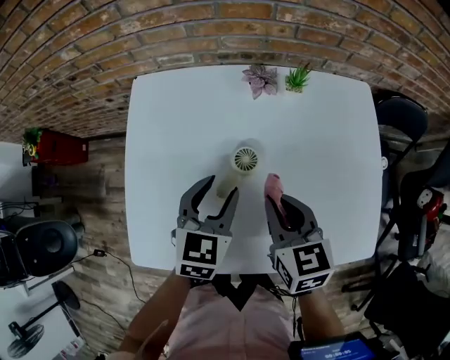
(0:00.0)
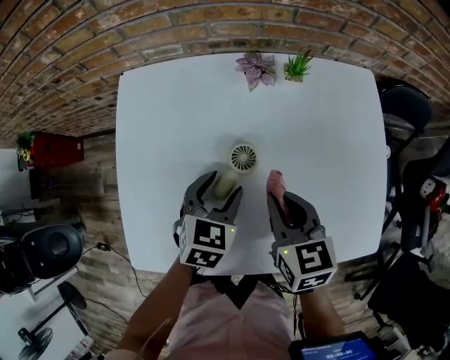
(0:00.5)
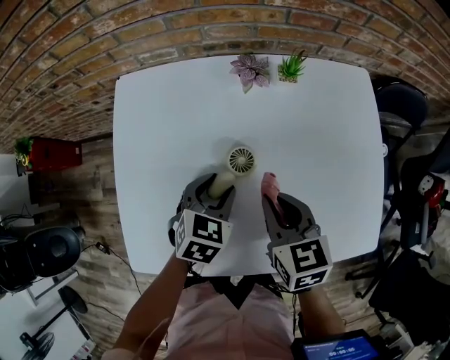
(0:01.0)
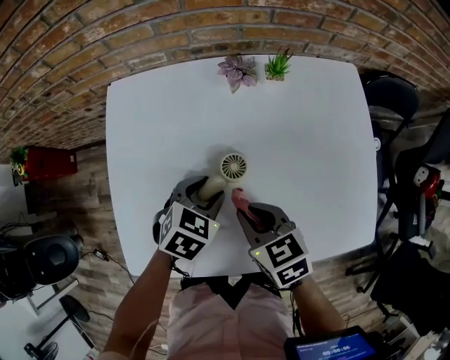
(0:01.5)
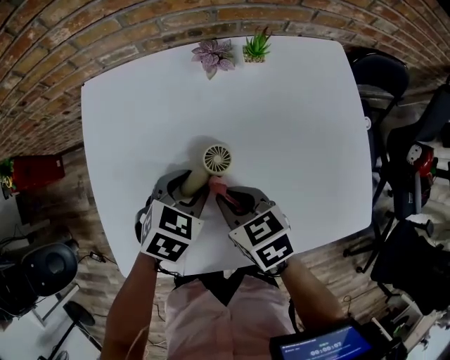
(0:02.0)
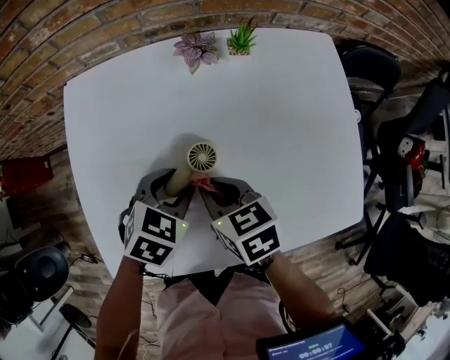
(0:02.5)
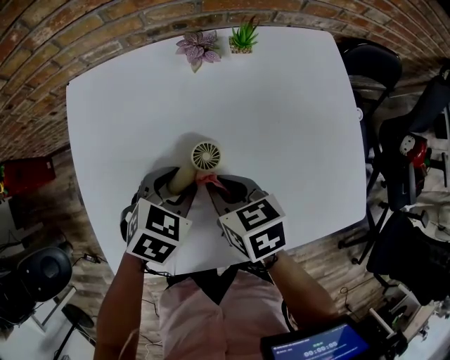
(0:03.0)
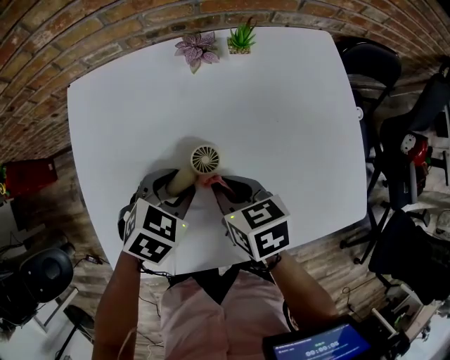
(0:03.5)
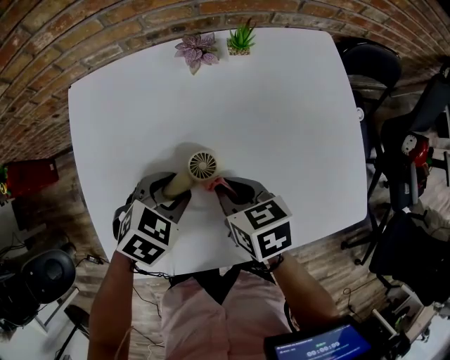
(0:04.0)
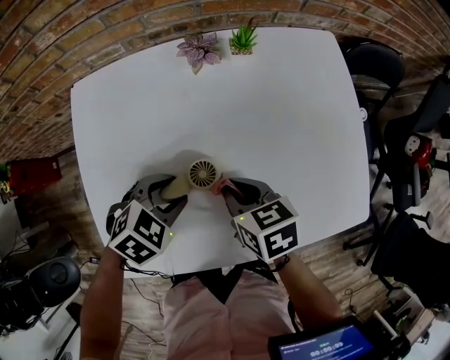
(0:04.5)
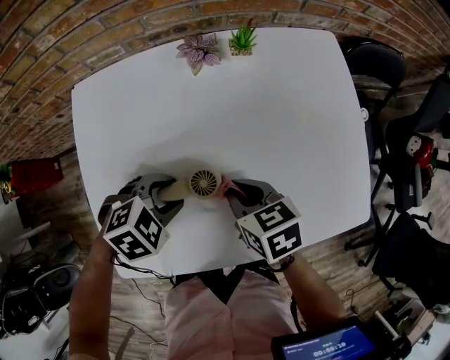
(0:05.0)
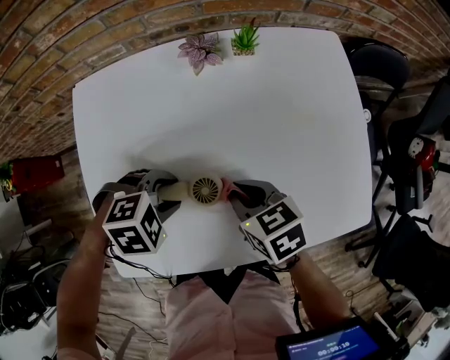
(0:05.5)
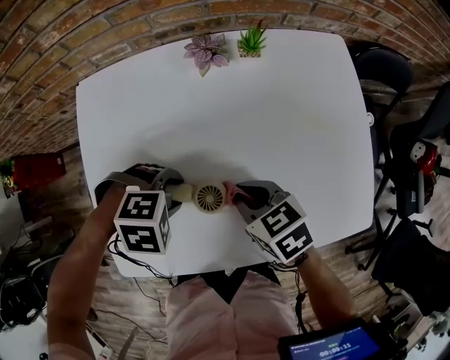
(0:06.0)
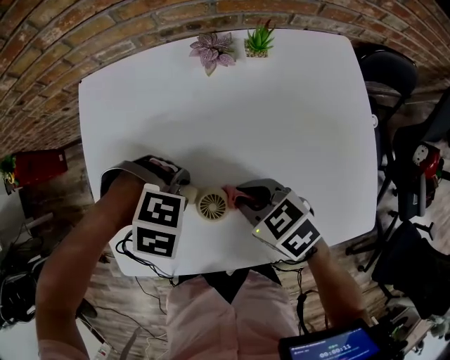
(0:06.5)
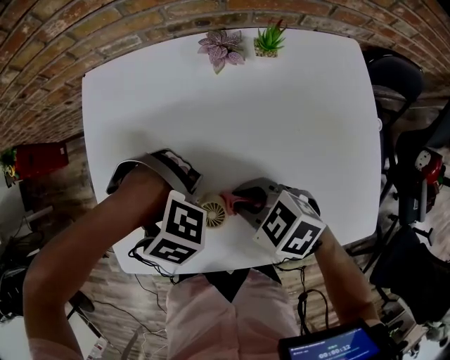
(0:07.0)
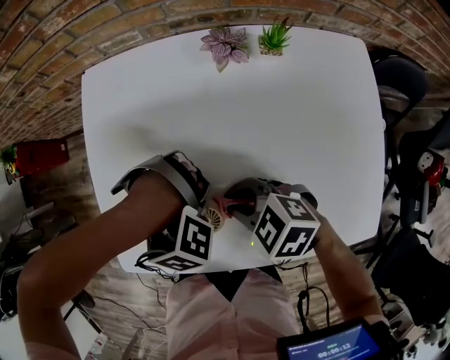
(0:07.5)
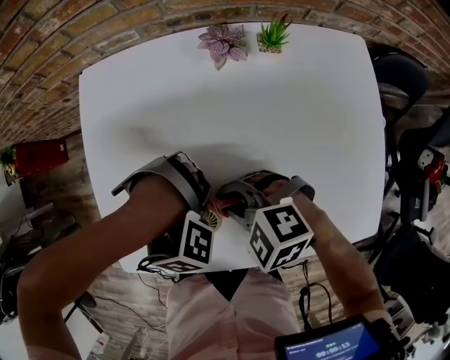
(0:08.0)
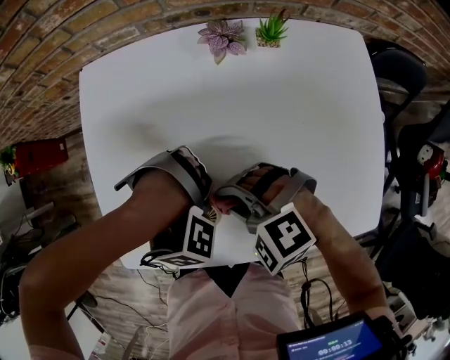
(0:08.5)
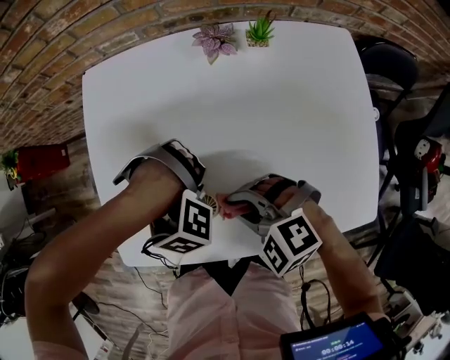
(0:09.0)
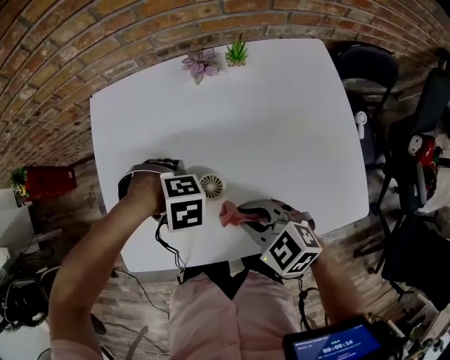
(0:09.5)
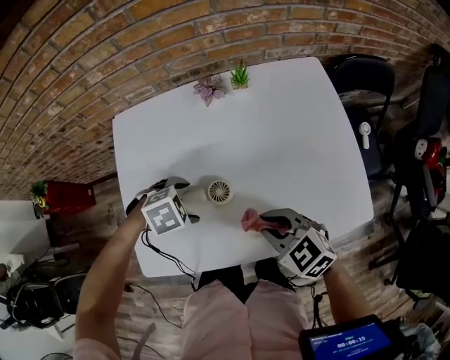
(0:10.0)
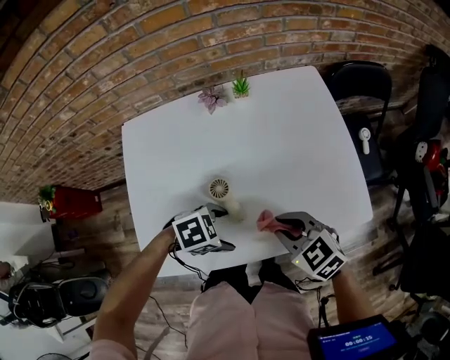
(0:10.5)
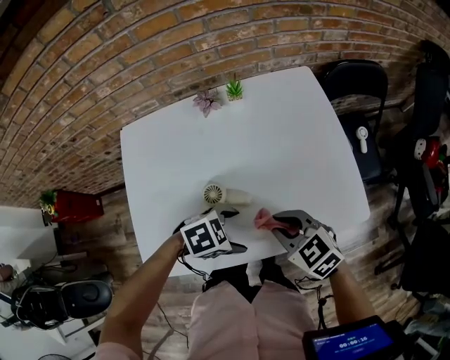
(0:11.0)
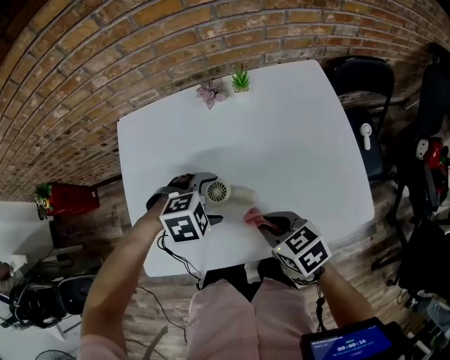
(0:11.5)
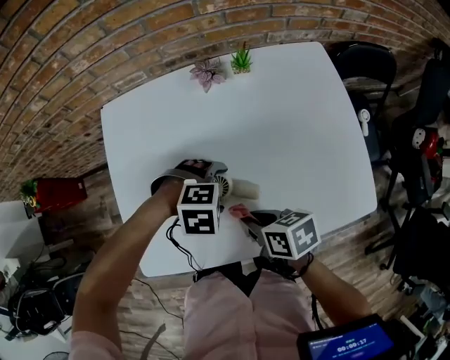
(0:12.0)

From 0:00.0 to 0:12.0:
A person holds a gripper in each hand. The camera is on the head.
From 0:00.0 to 0:02.0: The left gripper heads downward, covering roughly 10 cm, and rotates roughly 30 degrees, while the right gripper travels downward and to the left by roughly 10 cm, and swivels about 20 degrees.
From 0:02.0 to 0:04.0: The grippers make only small movements.
From 0:04.0 to 0:06.0: The left gripper rolls clockwise, seen from behind, by approximately 40 degrees.
From 0:06.0 to 0:08.0: The left gripper rolls clockwise, seen from behind, by approximately 40 degrees. The right gripper moves about 5 cm, and rolls counterclockwise, seen from behind, by roughly 50 degrees.
From 0:08.0 to 0:10.0: The left gripper rolls counterclockwise, seen from behind, by roughly 70 degrees, and opens its fingers, while the right gripper changes place by roughly 15 cm, and rotates about 40 degrees.
From 0:10.0 to 0:12.0: The left gripper swivels some 30 degrees. The right gripper goes approximately 5 cm downward, and twists roughly 50 degrees clockwise, seen from behind.

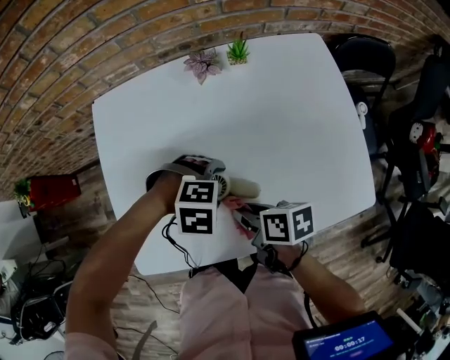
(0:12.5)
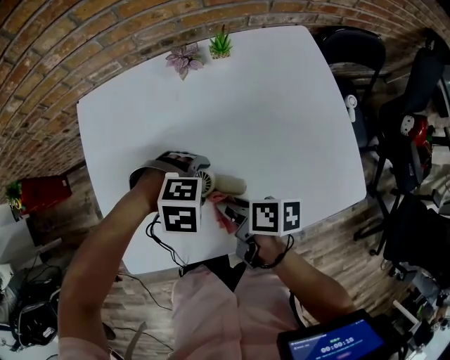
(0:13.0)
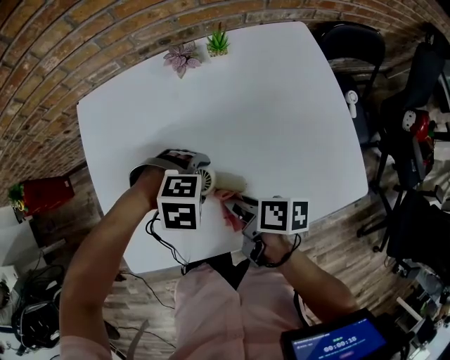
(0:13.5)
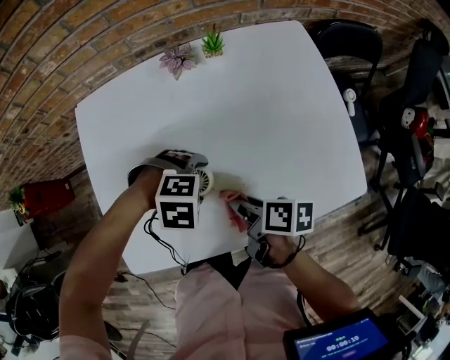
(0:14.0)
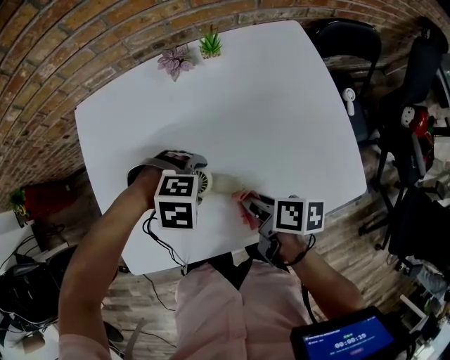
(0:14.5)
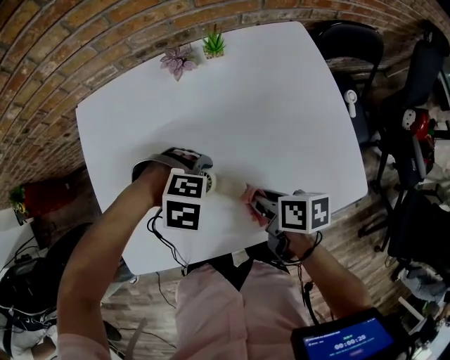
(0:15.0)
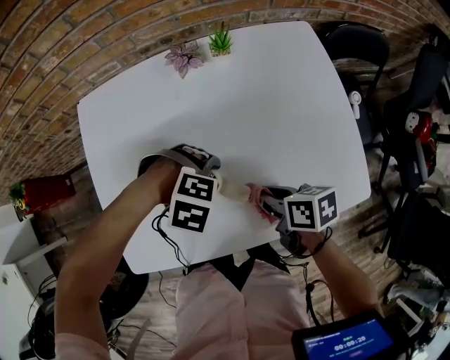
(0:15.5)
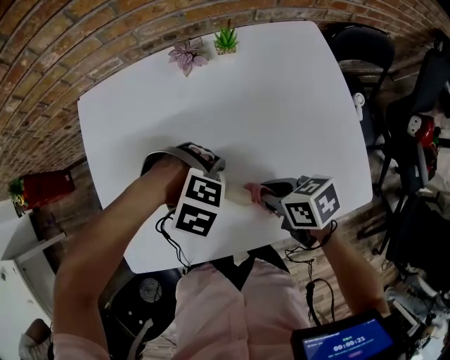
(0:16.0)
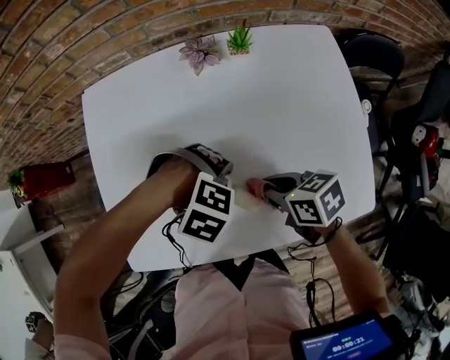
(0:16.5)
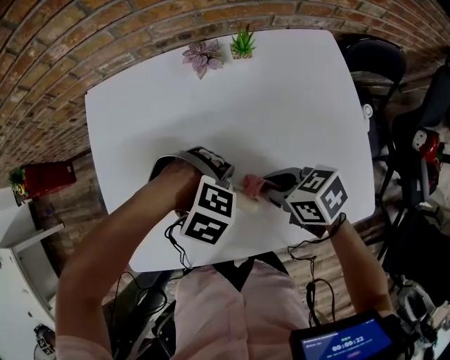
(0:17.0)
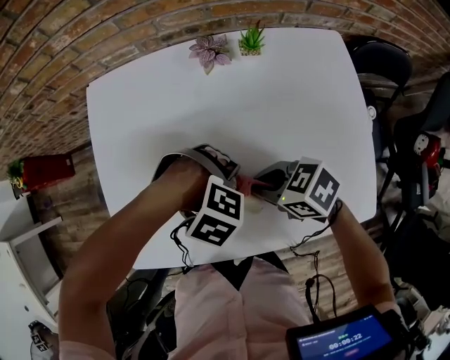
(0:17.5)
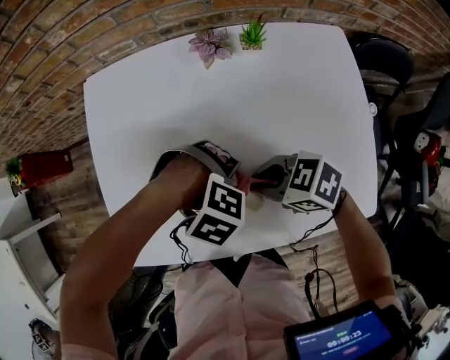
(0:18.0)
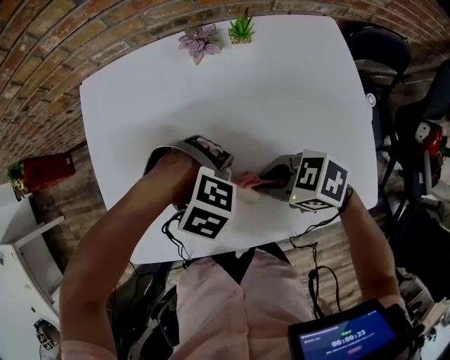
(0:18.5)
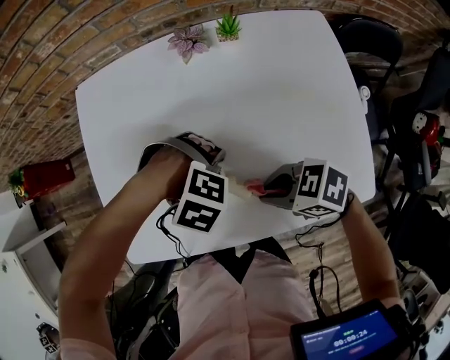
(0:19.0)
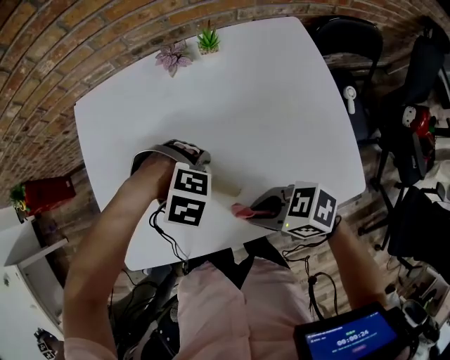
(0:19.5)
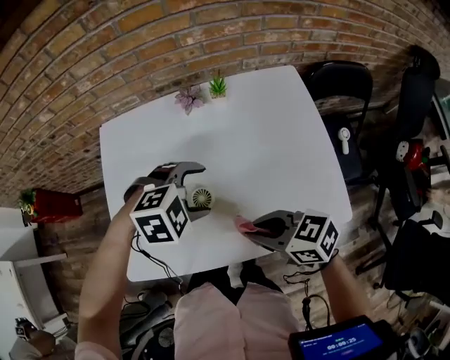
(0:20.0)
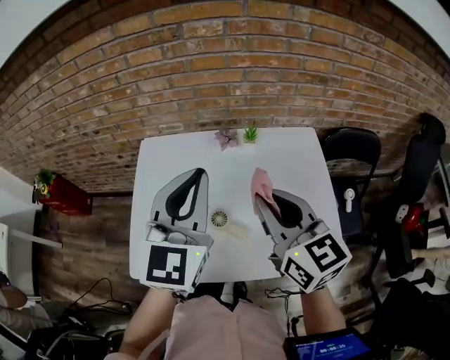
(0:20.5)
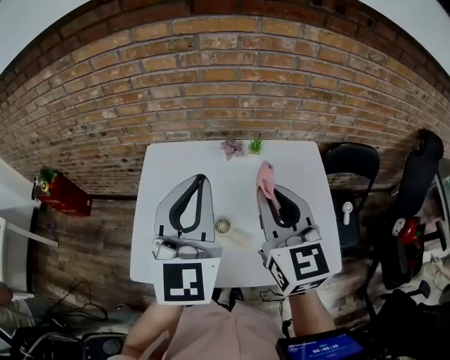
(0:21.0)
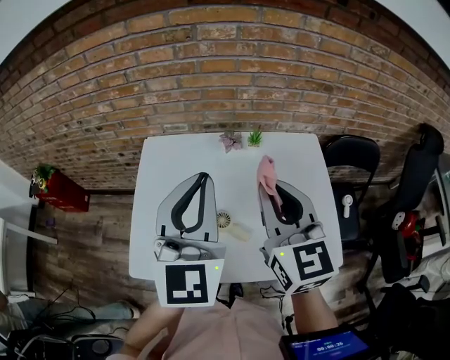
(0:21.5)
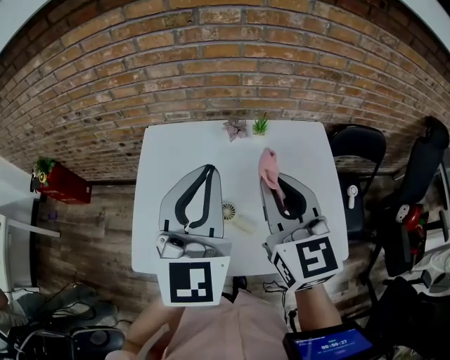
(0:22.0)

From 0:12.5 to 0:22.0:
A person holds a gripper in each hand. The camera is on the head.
From 0:12.5 to 0:14.5: The right gripper changes place by approximately 5 cm.
From 0:14.5 to 0:16.5: The right gripper changes its angle by about 40 degrees.
From 0:16.5 to 0:18.0: The right gripper swivels roughly 40 degrees.
From 0:18.0 to 0:20.0: The right gripper moves about 15 cm, and swivels some 20 degrees. Meanwhile the left gripper travels upward by approximately 10 cm, and turns by some 40 degrees.
From 0:20.0 to 0:22.0: Both grippers move upward, roughly 25 cm. The left gripper points its fingers approximately 60 degrees further upward, and closes up, while the right gripper changes its angle by about 60 degrees.

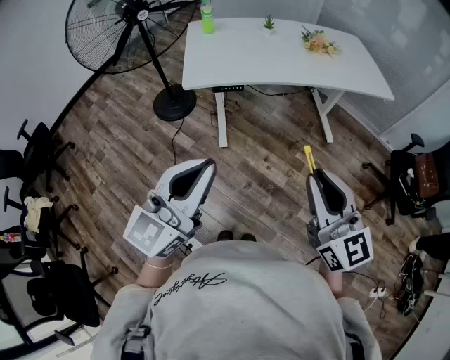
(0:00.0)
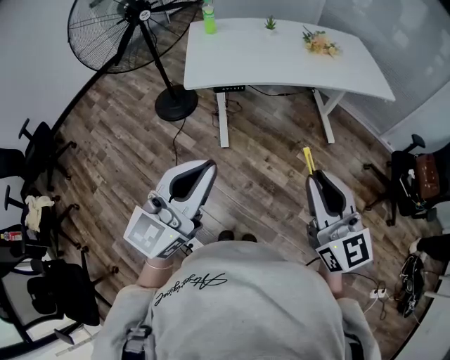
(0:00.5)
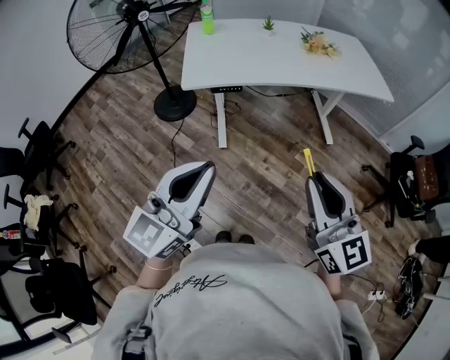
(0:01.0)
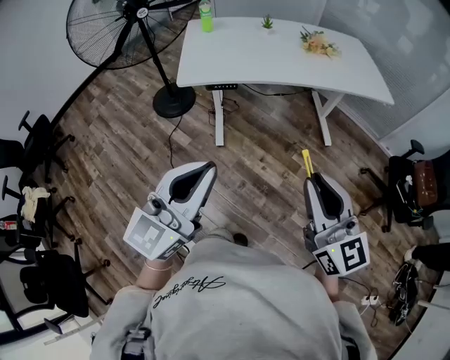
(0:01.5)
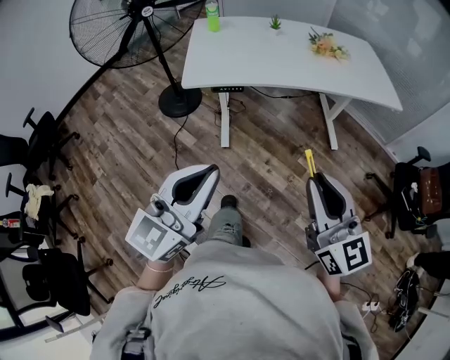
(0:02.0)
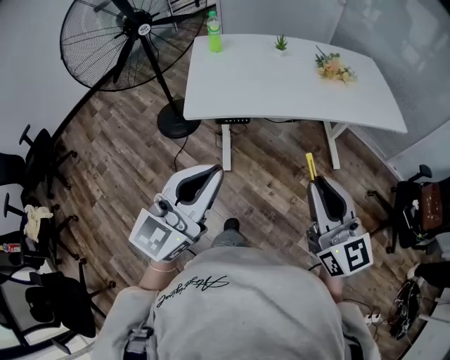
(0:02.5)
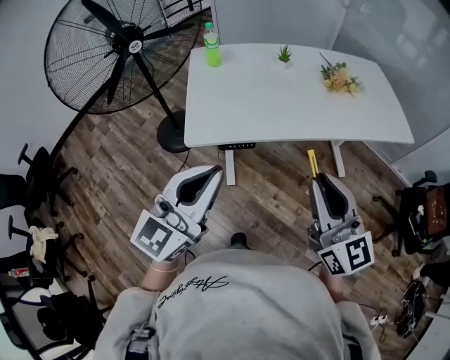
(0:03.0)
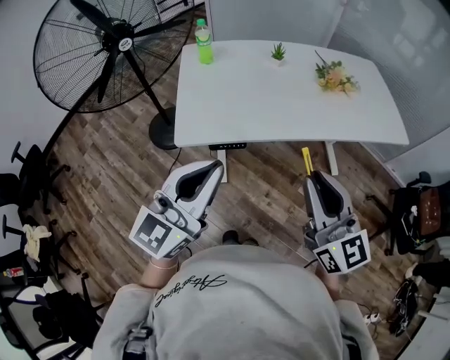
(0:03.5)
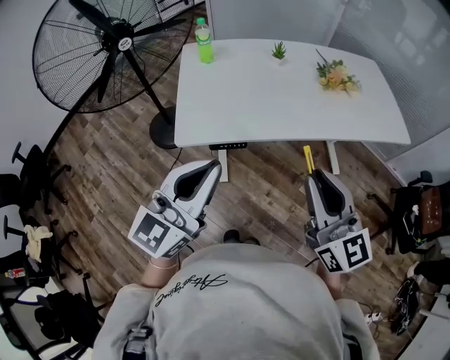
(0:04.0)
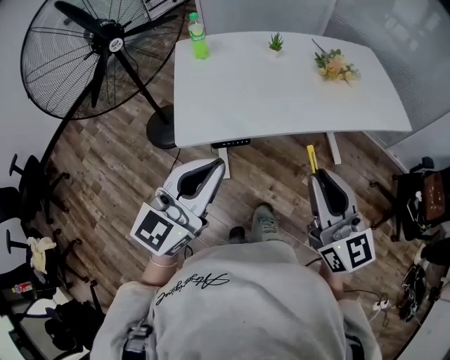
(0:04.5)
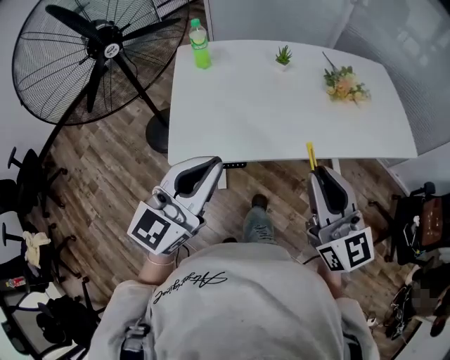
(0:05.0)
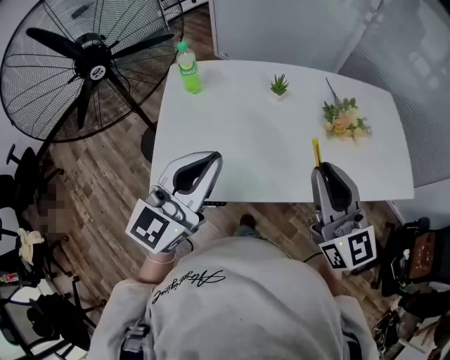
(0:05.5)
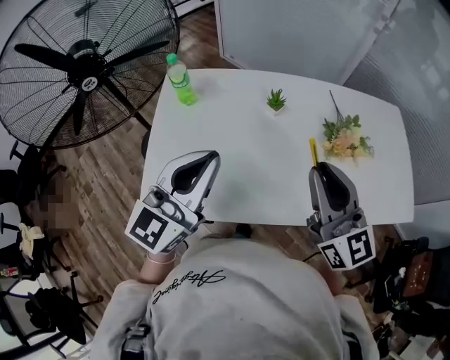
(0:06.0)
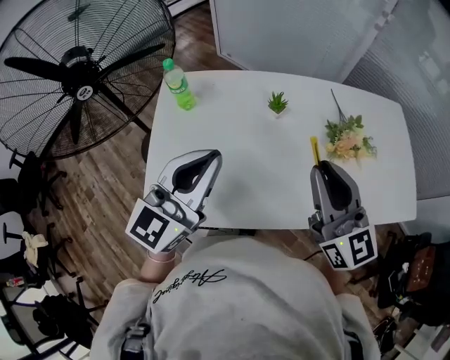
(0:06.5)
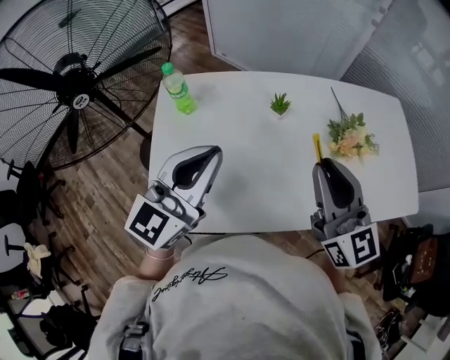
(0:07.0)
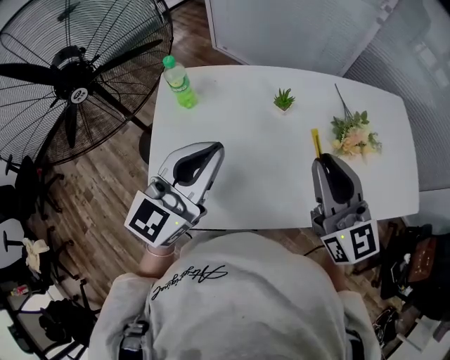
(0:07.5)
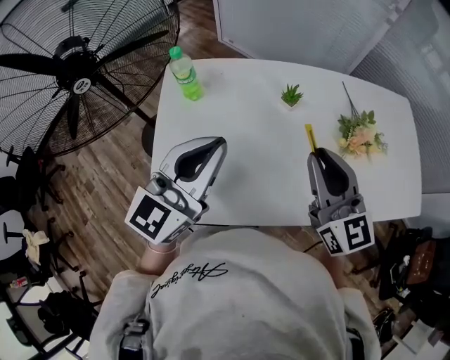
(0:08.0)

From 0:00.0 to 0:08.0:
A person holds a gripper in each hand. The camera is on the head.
From 0:00.0 to 0:02.0: The right gripper changes place by some 5 cm.
From 0:02.0 to 0:04.0: Both grippers move forward, some 25 cm.
From 0:04.0 to 0:06.0: Both grippers travel together forward, approximately 30 cm.
From 0:06.0 to 0:08.0: The right gripper is displaced to the left and forward by about 10 cm; the left gripper is displaced forward by roughly 5 cm.
